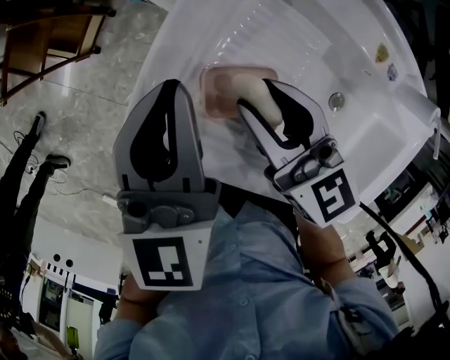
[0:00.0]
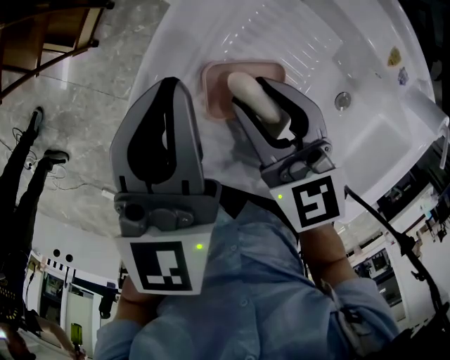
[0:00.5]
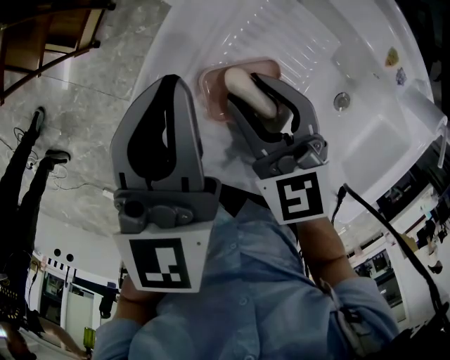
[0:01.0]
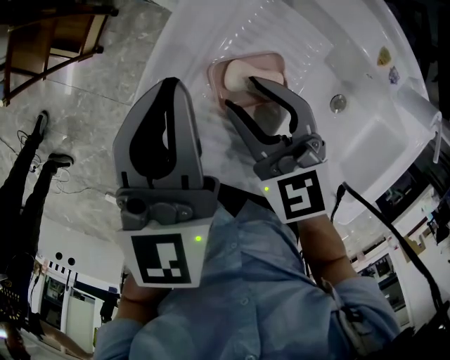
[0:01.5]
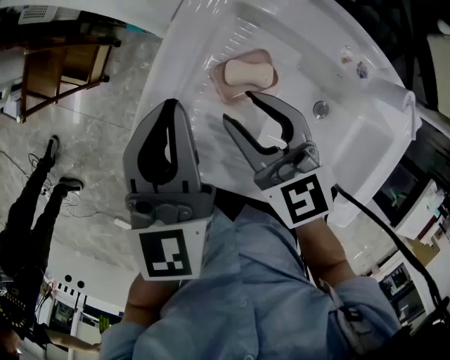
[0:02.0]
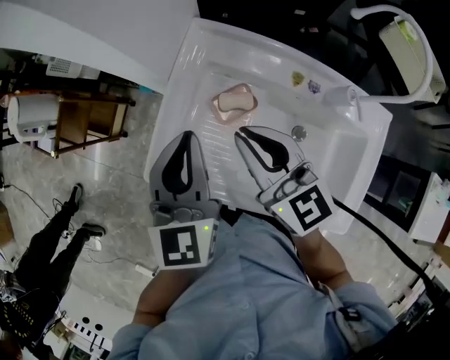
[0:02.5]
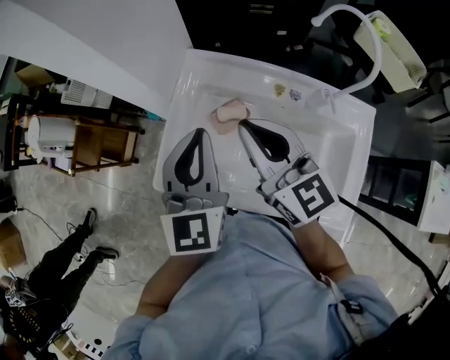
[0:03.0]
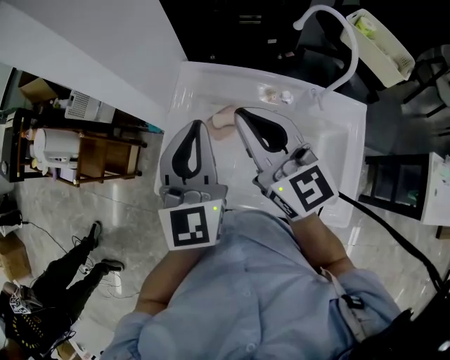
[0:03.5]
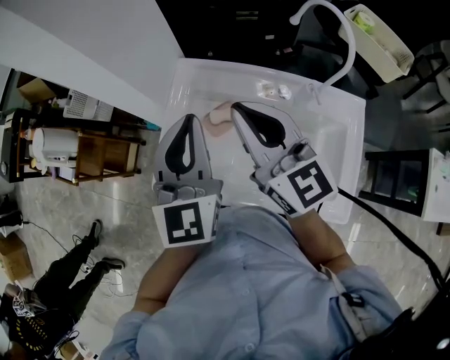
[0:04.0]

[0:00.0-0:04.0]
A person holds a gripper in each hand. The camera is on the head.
0:02.0 to 0:04.0: Both grippers travel together upward and to the right, some 25 cm. The left gripper turns by approximately 30 degrees. The right gripper swivels about 30 degrees, and closes up.

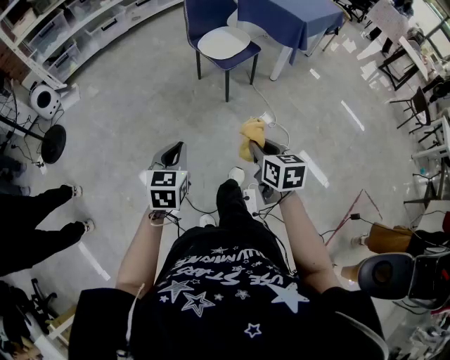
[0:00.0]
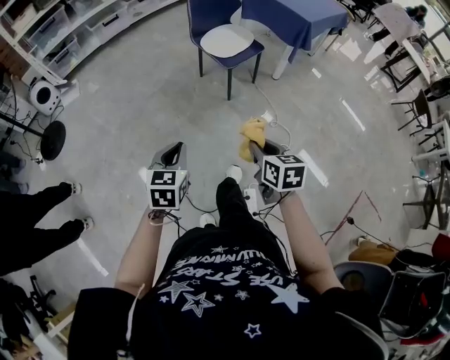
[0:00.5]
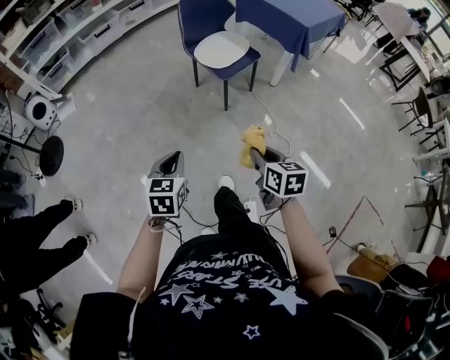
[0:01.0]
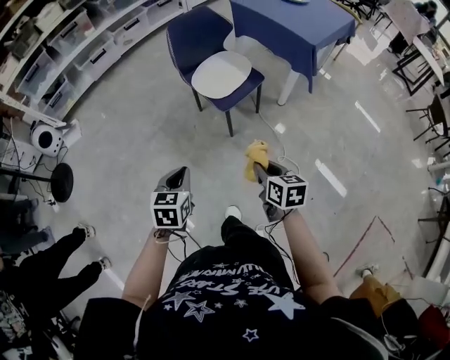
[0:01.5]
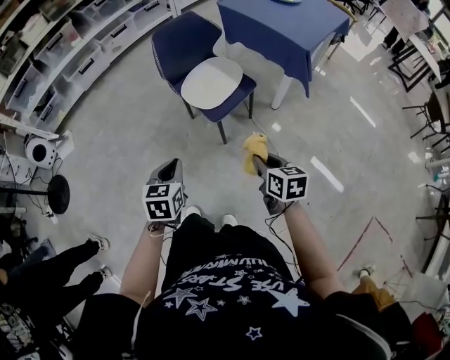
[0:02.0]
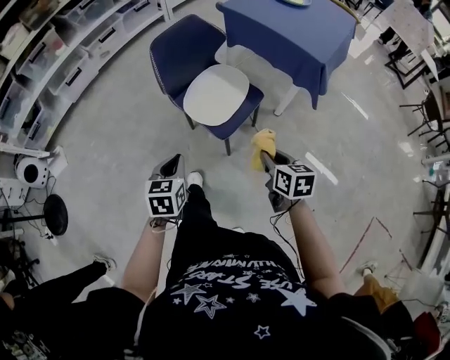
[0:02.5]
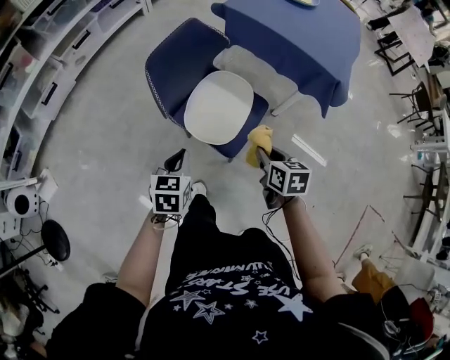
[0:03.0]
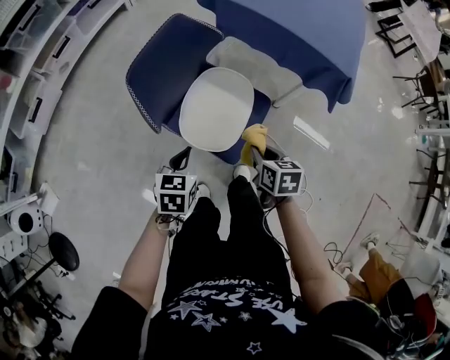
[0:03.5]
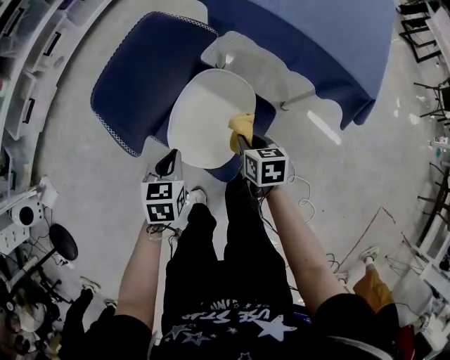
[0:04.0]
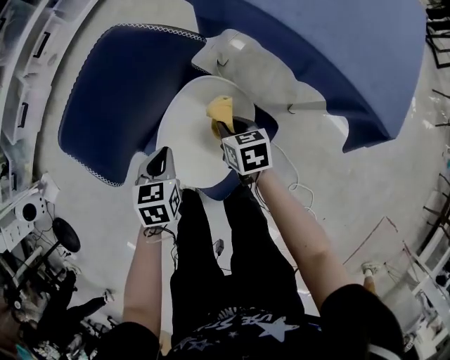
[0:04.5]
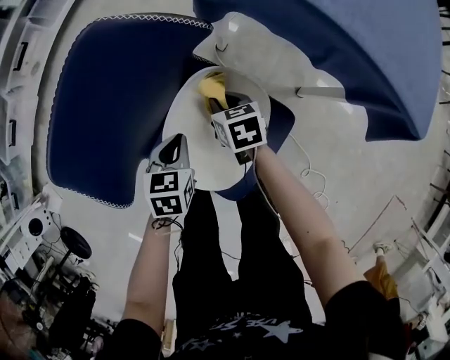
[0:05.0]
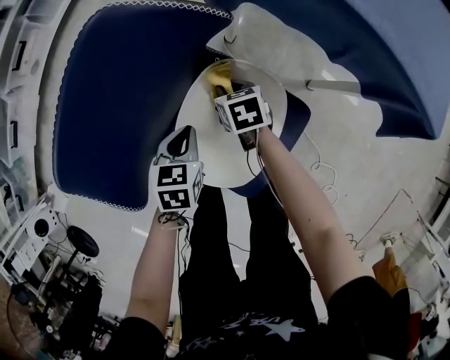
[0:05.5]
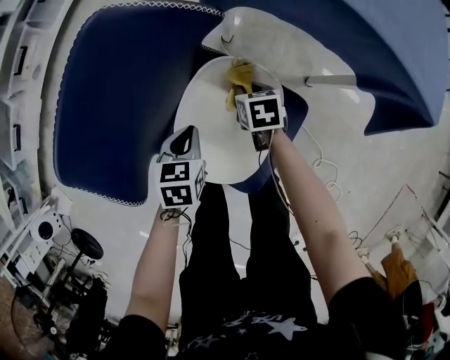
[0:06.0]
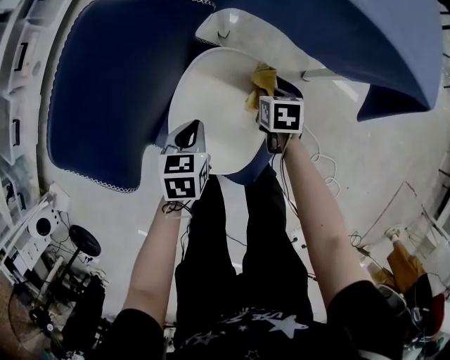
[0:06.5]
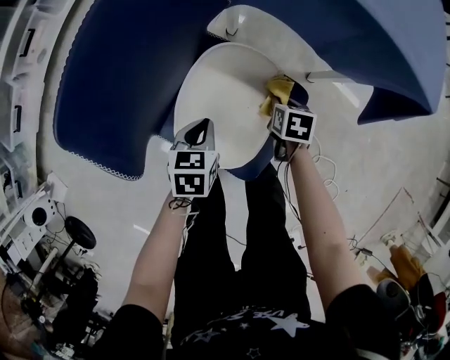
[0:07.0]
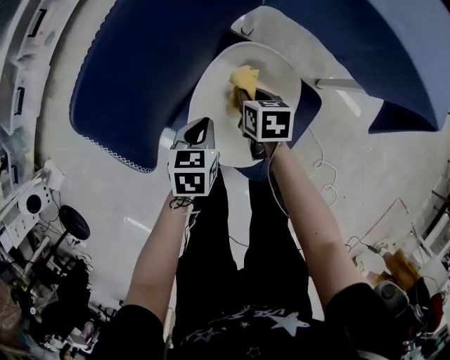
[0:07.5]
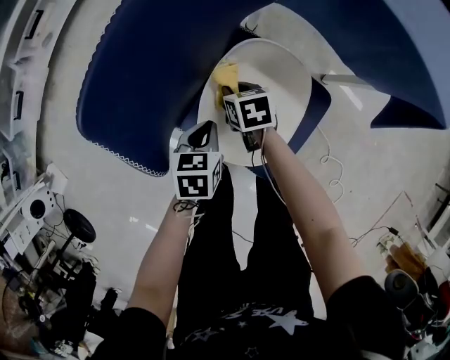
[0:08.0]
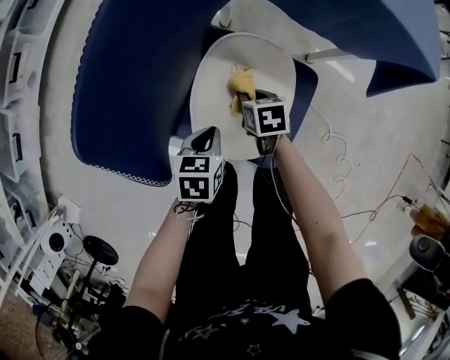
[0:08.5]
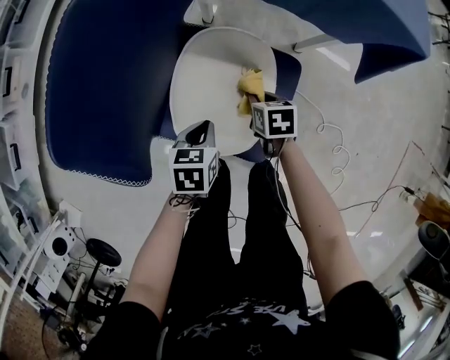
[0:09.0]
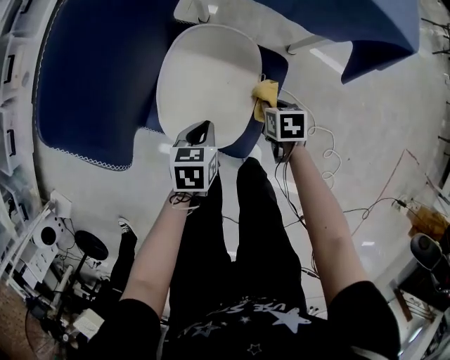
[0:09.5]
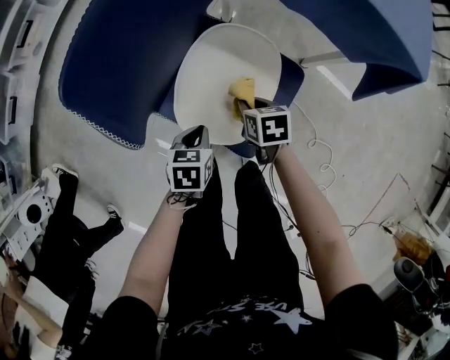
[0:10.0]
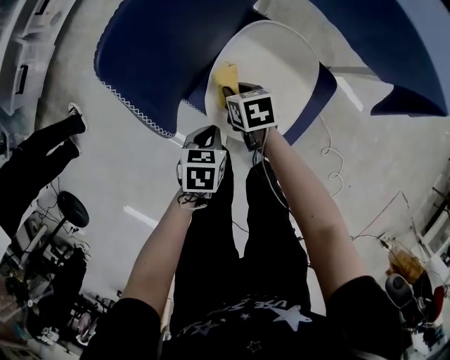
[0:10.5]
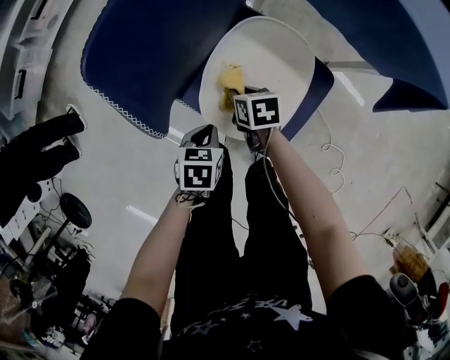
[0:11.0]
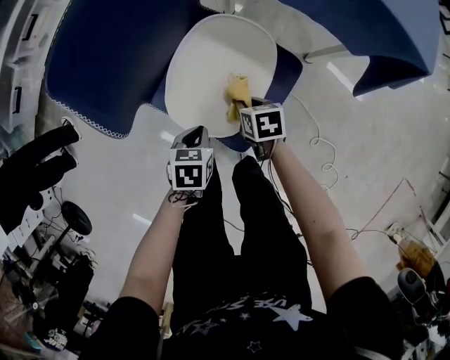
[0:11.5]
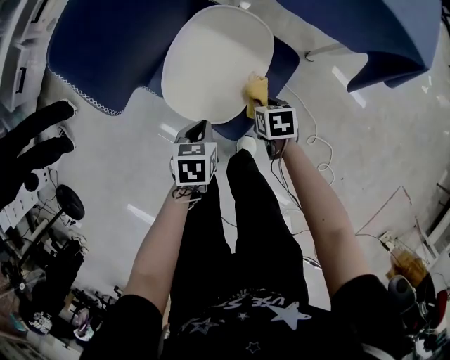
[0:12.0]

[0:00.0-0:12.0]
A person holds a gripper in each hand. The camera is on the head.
0:00.0 to 0:02.0: The grippers both shift forward by roughly 35 cm.
0:02.0 to 0:04.0: The two grippers travel together, forward, approximately 50 cm. The right gripper heads downward, covering roughly 20 cm.
0:04.0 to 0:06.0: The right gripper heads forward and downward, covering roughly 25 cm. Meanwhile the left gripper is displaced downward and forward by about 20 cm.
0:06.0 to 0:08.0: The right gripper shifts about 15 cm to the left and backward, while the left gripper goes approximately 5 cm backward.
0:08.0 to 0:10.0: The left gripper goes approximately 10 cm backward and to the right; the right gripper is displaced to the right and backward by some 15 cm.
0:10.0 to 0:12.0: The right gripper heads to the right and backward, covering about 10 cm; the left gripper heads backward and to the right, covering some 10 cm.

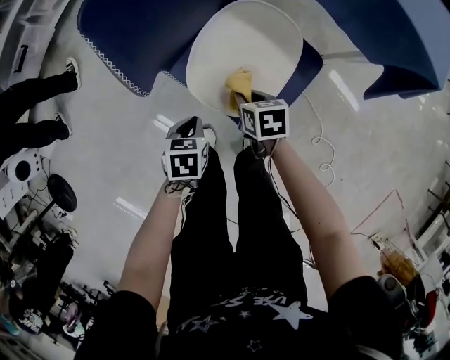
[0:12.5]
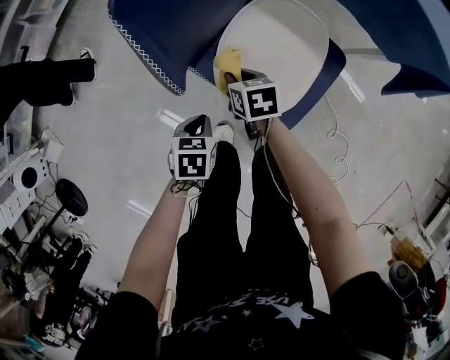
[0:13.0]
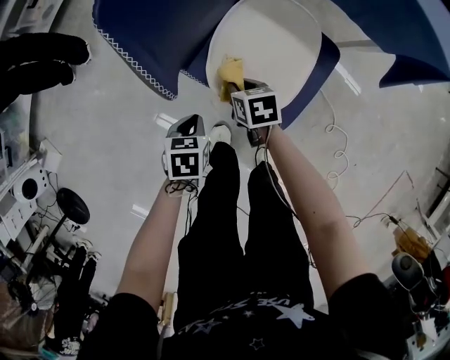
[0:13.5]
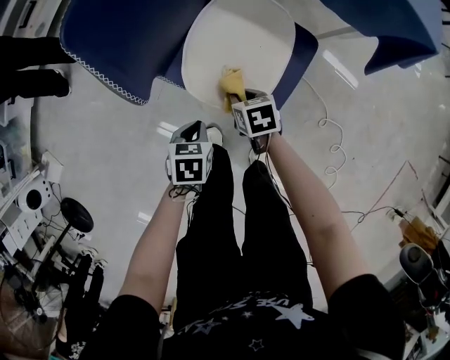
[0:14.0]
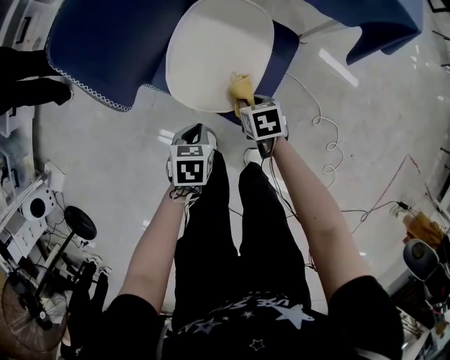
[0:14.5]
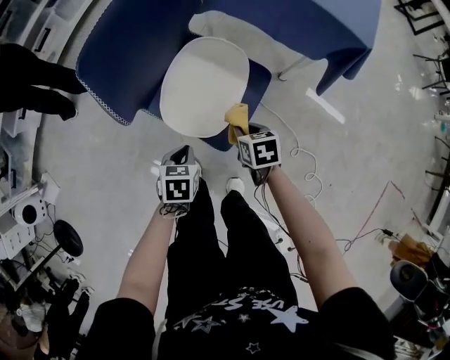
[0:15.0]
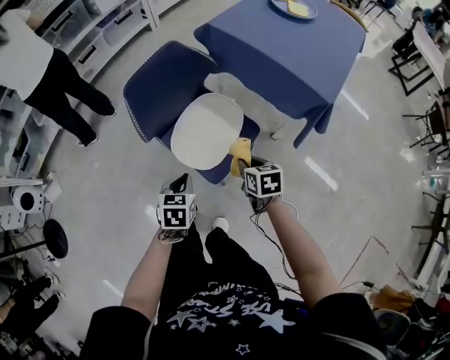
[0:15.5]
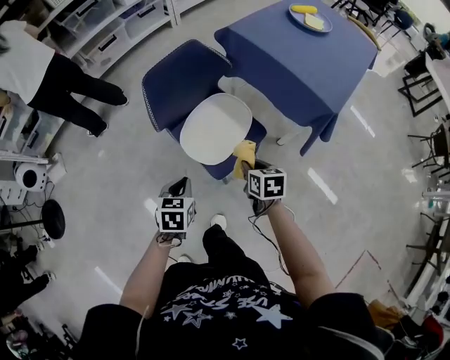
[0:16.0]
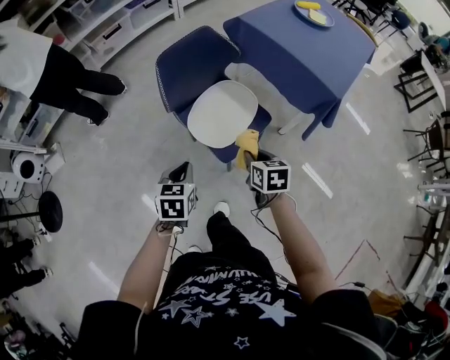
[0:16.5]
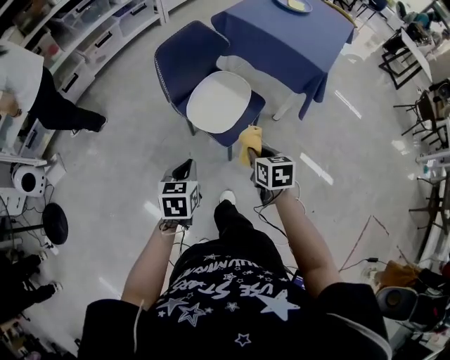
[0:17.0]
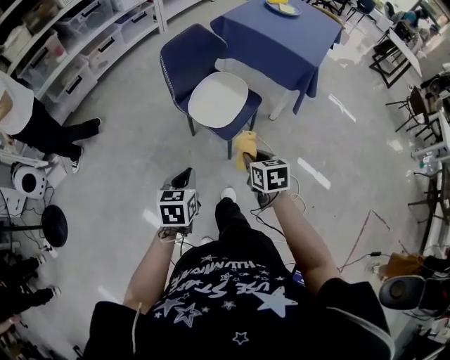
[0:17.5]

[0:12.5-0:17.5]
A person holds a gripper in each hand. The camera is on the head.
0:12.5 to 0:15.0: The left gripper goes roughly 10 cm upward and to the right; the right gripper travels to the right and upward by about 10 cm.
0:15.0 to 0:17.5: The two grippers go roughly 35 cm backward and upward. The left gripper changes its angle by approximately 20 degrees.

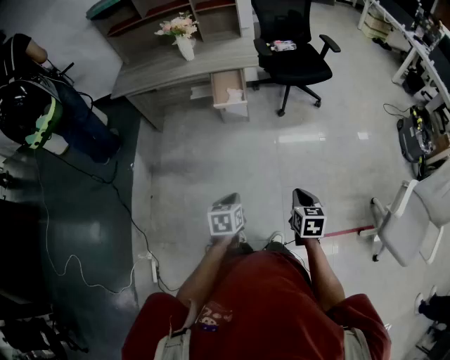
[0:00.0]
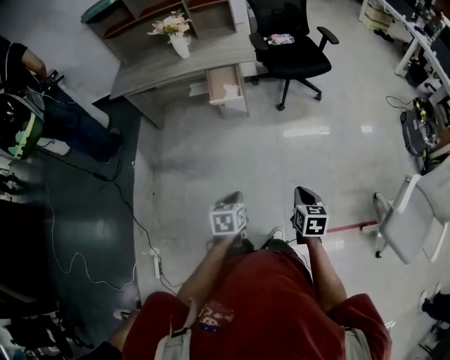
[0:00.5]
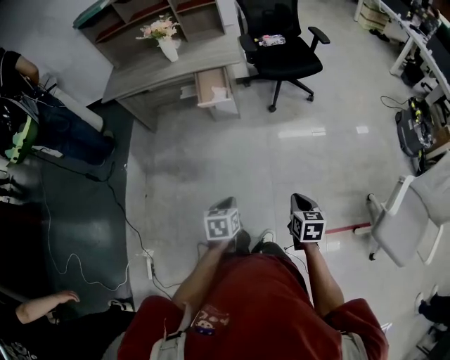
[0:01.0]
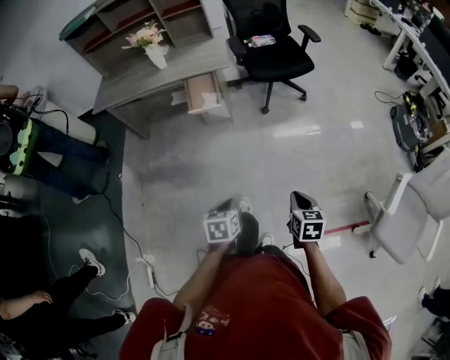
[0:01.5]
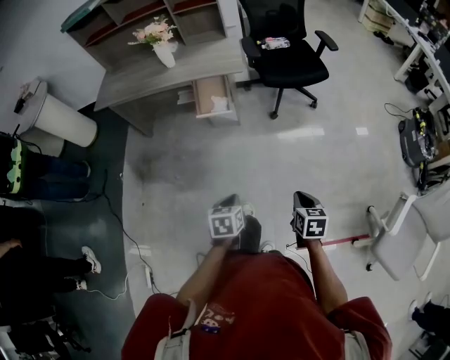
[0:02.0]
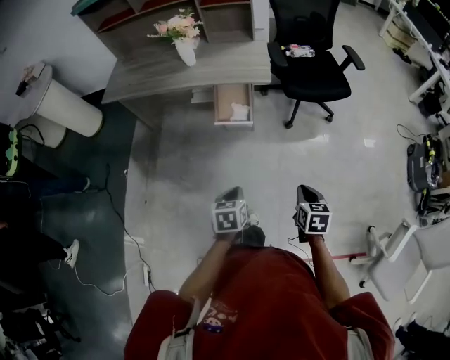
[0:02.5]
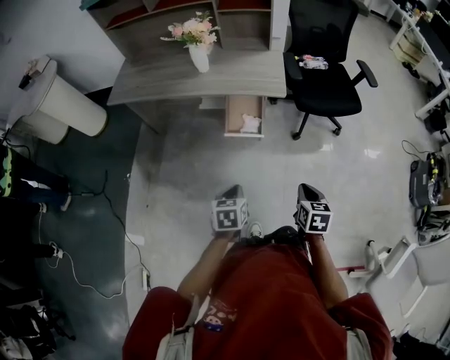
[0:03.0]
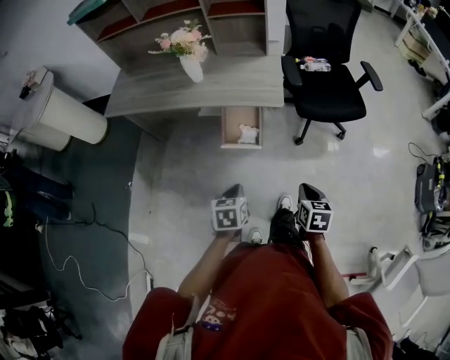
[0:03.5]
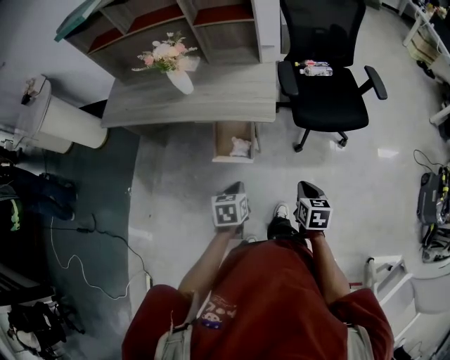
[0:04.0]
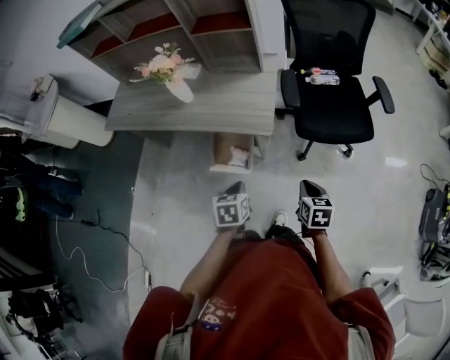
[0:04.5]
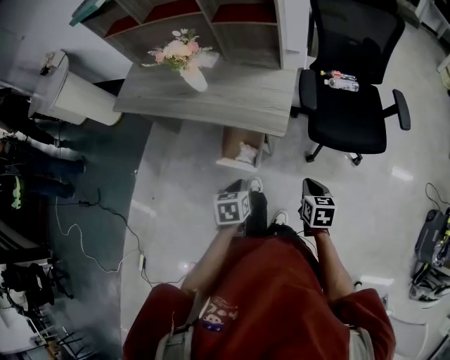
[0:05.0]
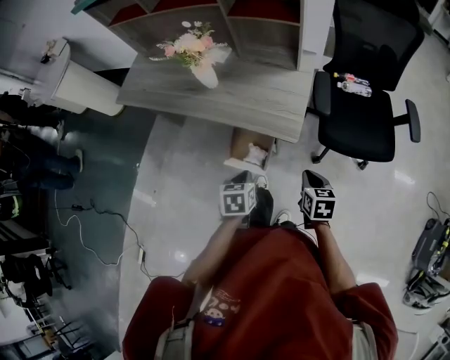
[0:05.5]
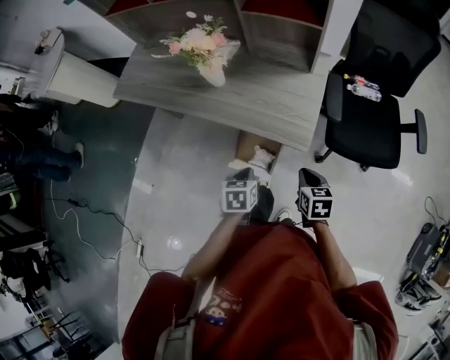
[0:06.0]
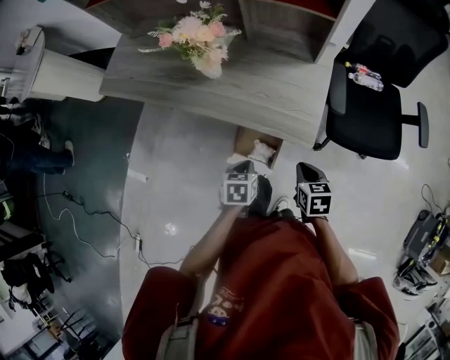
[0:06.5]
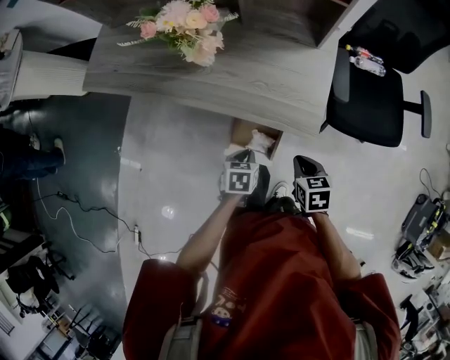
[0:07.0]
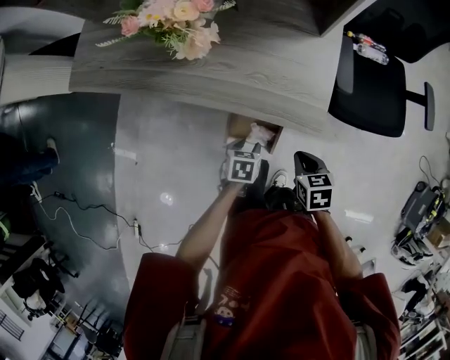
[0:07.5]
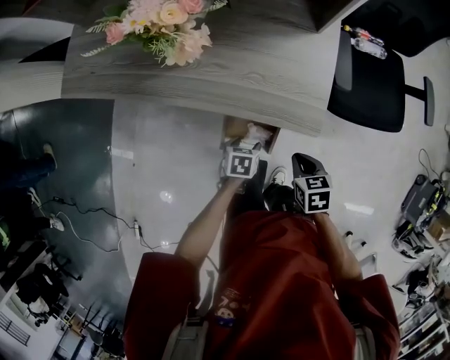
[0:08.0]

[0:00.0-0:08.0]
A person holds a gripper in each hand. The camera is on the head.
0:00.0 to 0:02.0: Both grippers travel together forward and to the right, some 15 cm.
0:02.0 to 0:04.0: The two grippers go roughly 40 cm forward.
0:04.0 to 0:06.0: The grippers both shift forward by about 20 cm.
0:06.0 to 0:08.0: The right gripper goes approximately 10 cm downward and to the left; the left gripper moves downward, approximately 20 cm, swivels approximately 20 degrees, and opens.
